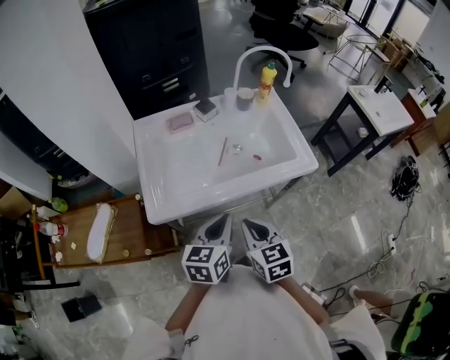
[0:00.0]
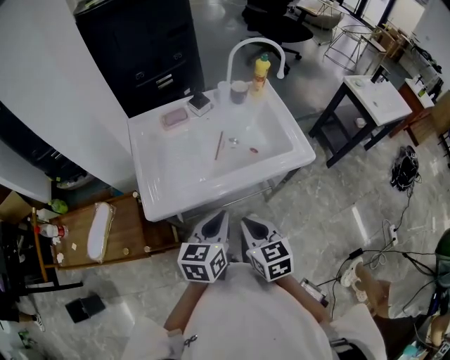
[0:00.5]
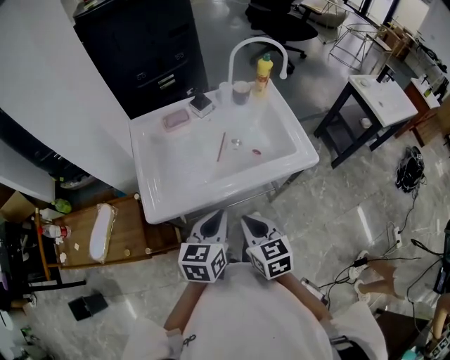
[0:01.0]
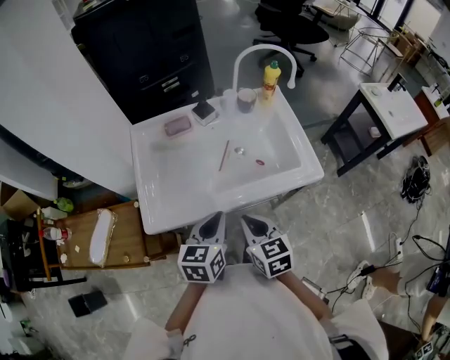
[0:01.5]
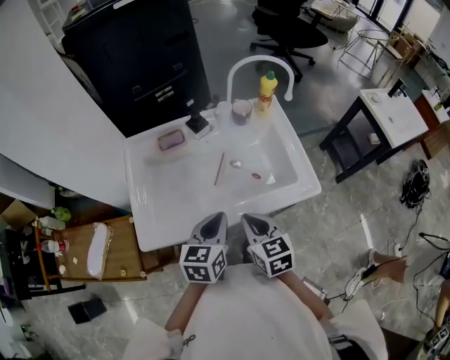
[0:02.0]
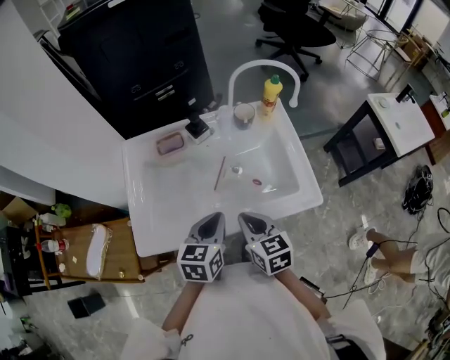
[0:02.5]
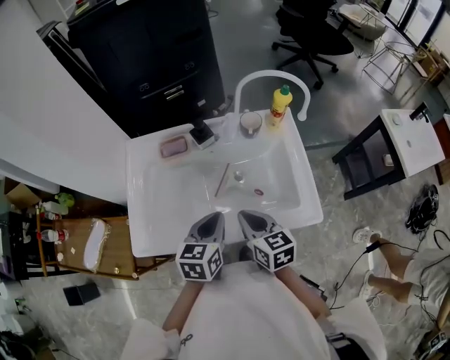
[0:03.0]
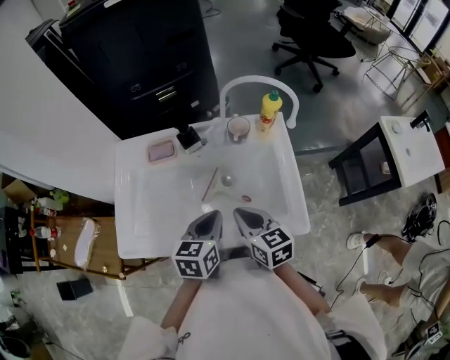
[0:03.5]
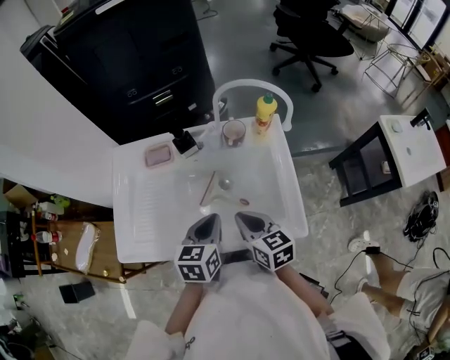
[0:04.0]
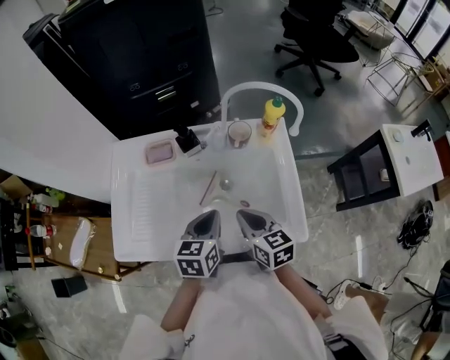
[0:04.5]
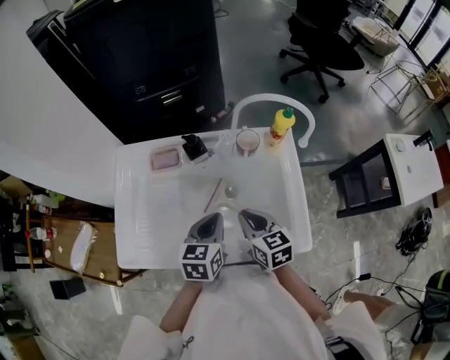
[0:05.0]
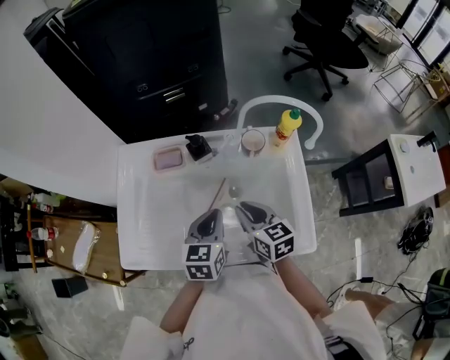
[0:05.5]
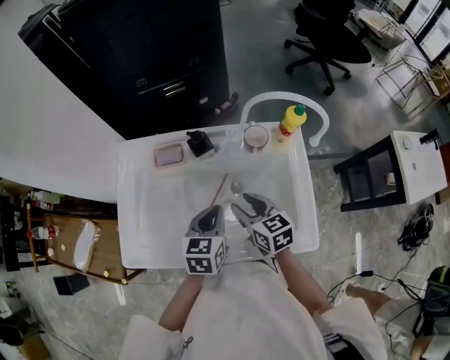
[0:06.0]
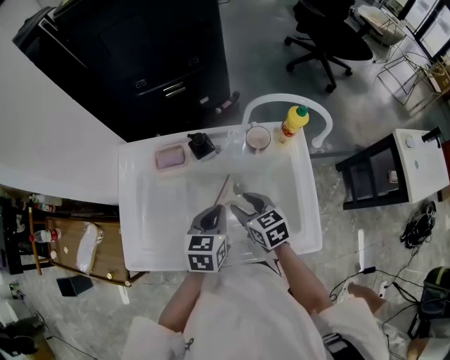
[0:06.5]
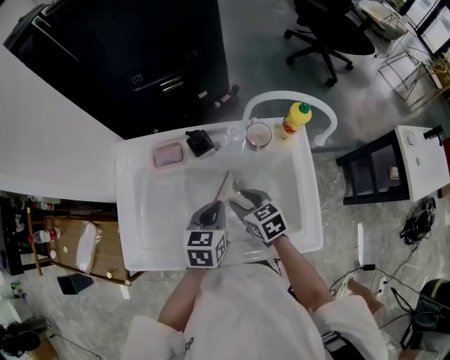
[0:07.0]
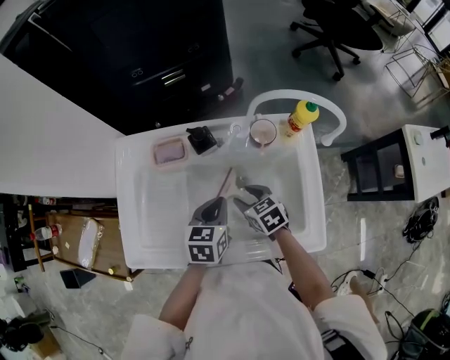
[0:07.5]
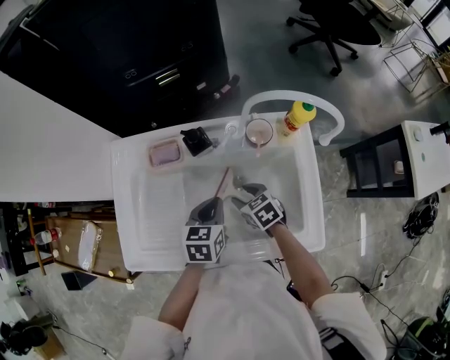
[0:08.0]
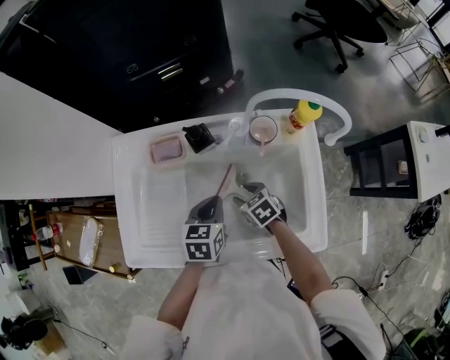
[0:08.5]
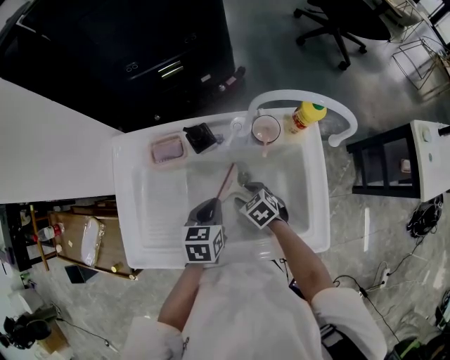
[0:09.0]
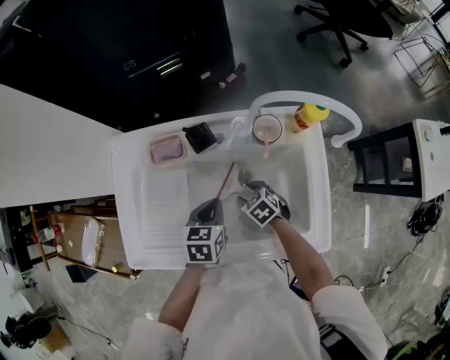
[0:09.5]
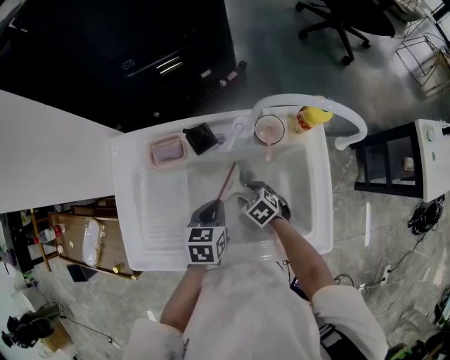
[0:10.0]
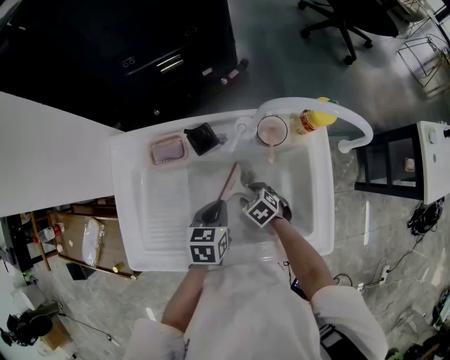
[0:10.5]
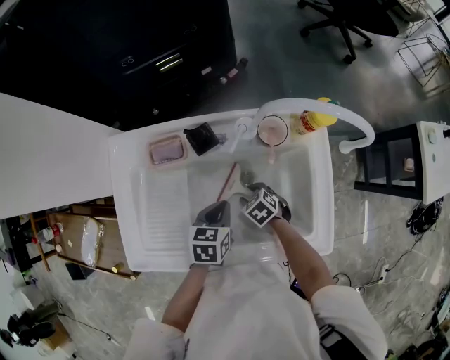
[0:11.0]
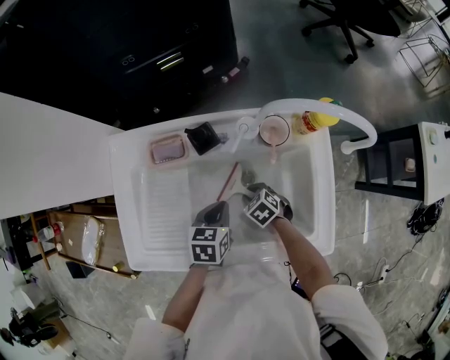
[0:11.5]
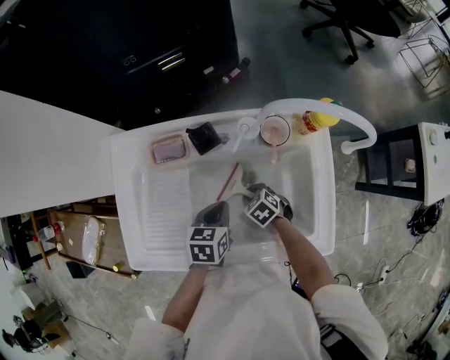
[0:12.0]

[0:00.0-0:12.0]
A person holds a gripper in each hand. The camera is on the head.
0:00.0 to 0:02.0: The two grippers go roughly 10 cm forward.
0:02.0 to 0:04.0: Both grippers move forward and to the right, some 15 cm.
0:04.0 to 0:06.0: The two grippers go roughly 10 cm forward. The right gripper opens.
0:06.0 to 0:08.0: The right gripper travels downward by about 10 cm, and changes its angle by roughly 30 degrees. Meanwhile the left gripper travels downward by approximately 5 cm.
0:08.0 to 0:10.0: The right gripper shifts about 5 cm downward.
0:10.0 to 0:12.0: The right gripper closes its fingers.

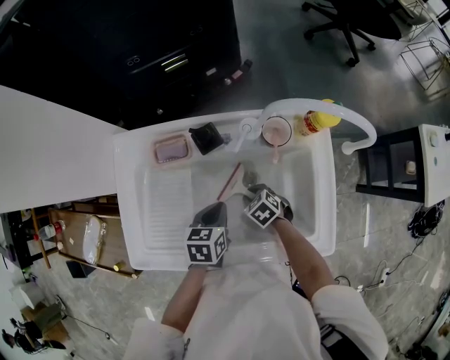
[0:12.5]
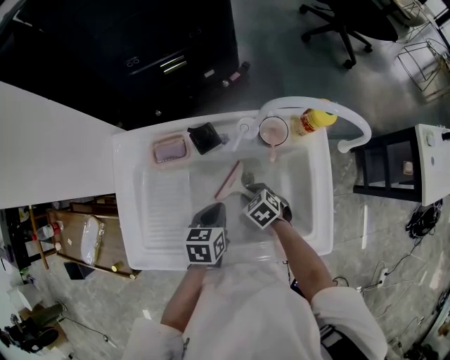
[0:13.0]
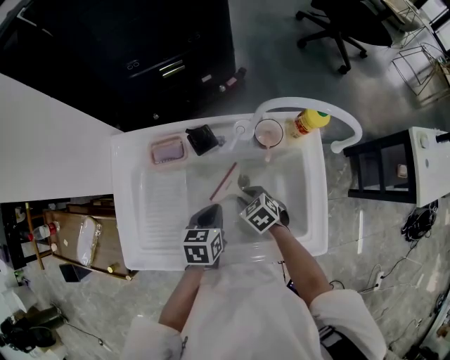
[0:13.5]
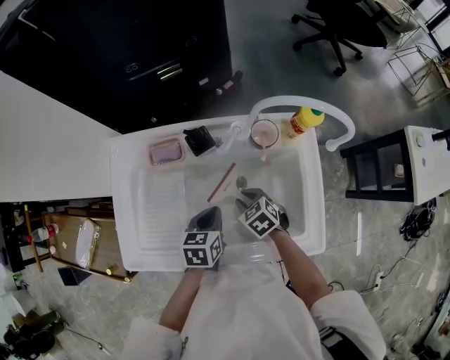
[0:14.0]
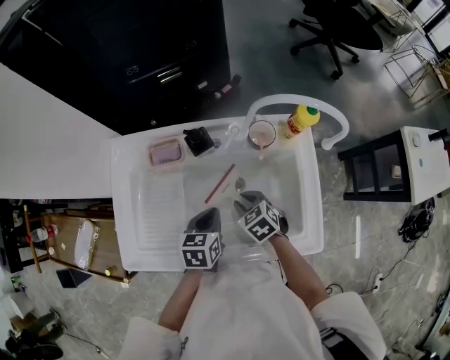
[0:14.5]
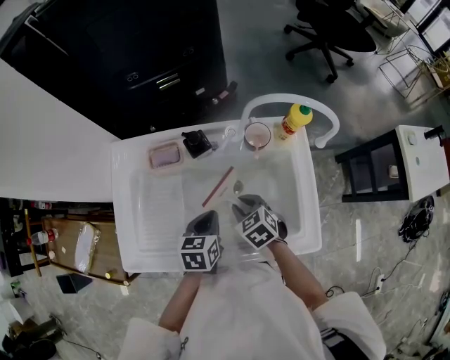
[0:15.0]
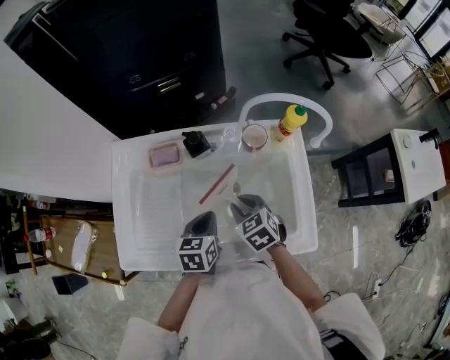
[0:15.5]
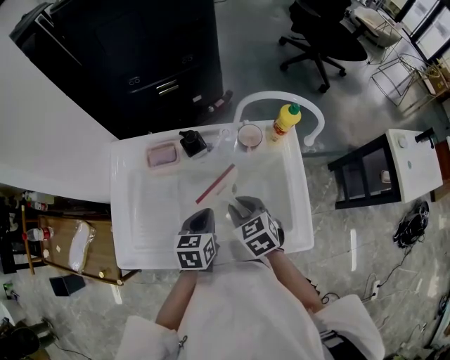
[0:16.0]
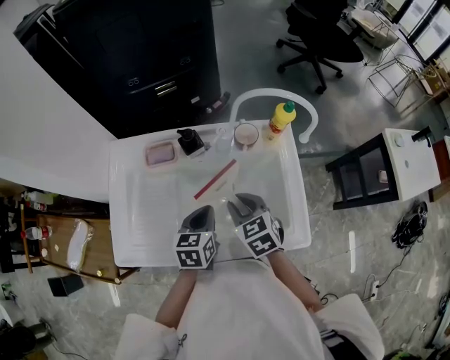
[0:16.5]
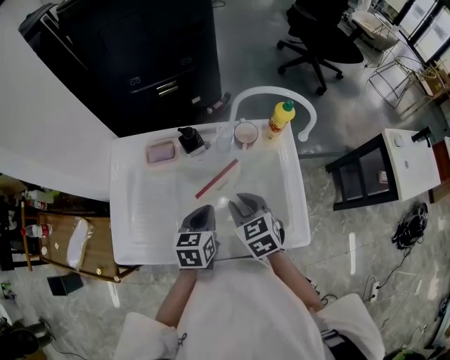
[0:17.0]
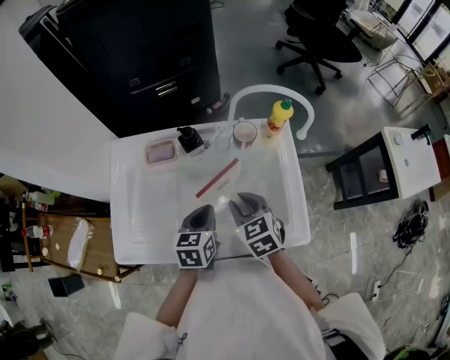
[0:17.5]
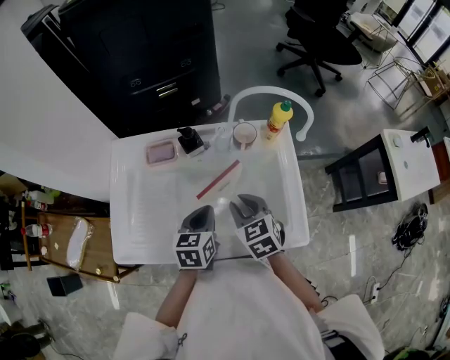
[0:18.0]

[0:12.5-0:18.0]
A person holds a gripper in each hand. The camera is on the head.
0:12.5 to 0:14.5: The right gripper is displaced upward by roughly 10 cm.
0:14.5 to 0:16.0: The right gripper travels upward by roughly 10 cm.
0:16.0 to 0:18.0: The grippers move only a little.

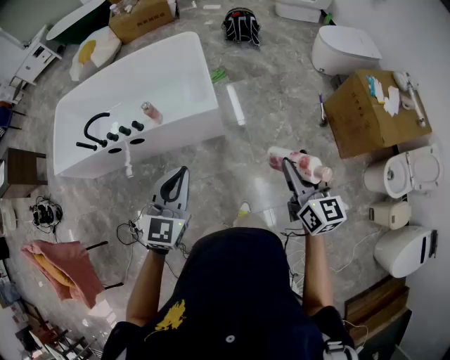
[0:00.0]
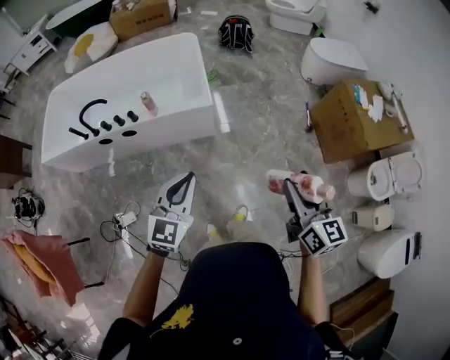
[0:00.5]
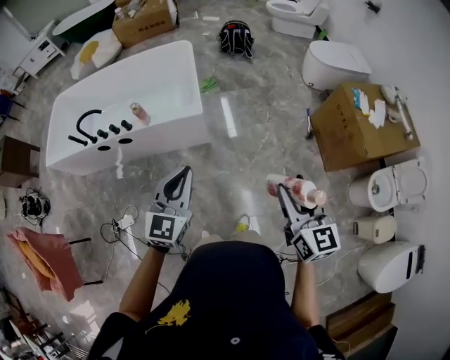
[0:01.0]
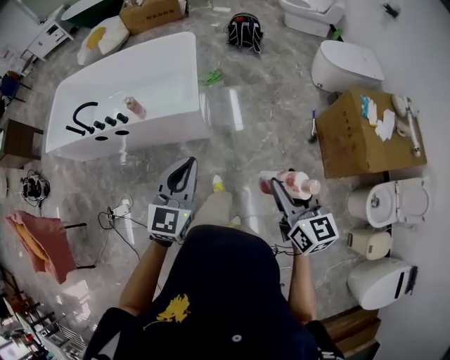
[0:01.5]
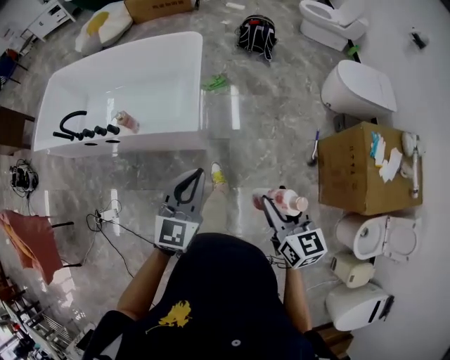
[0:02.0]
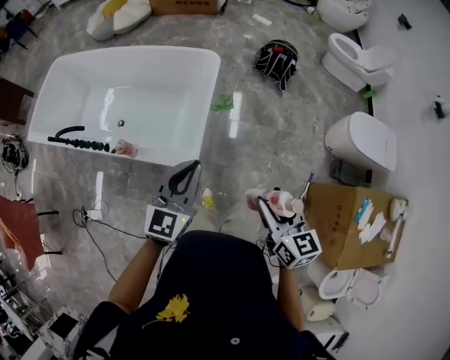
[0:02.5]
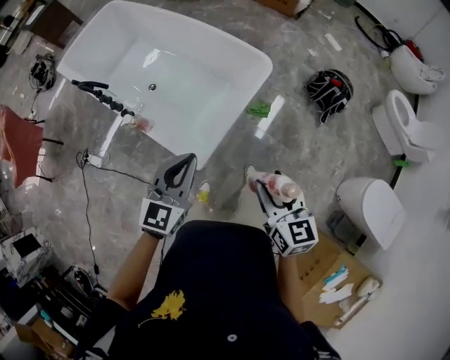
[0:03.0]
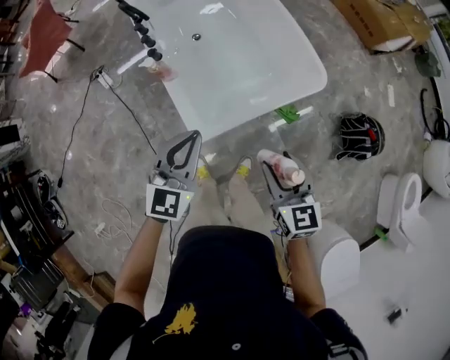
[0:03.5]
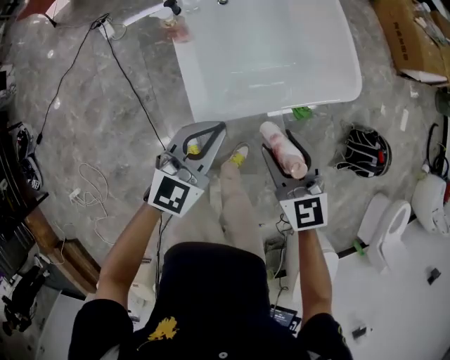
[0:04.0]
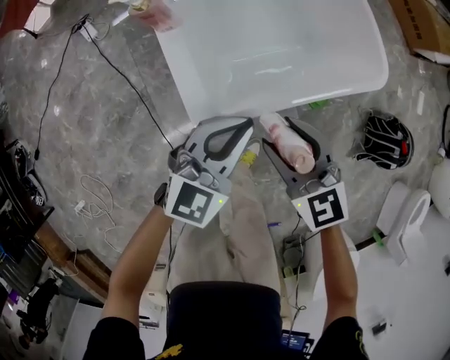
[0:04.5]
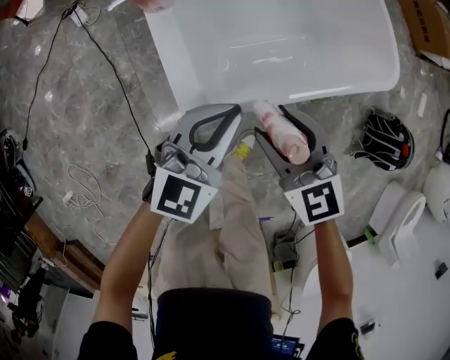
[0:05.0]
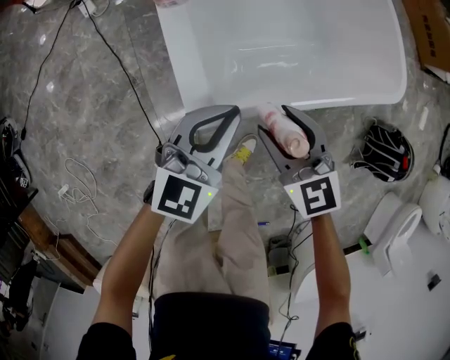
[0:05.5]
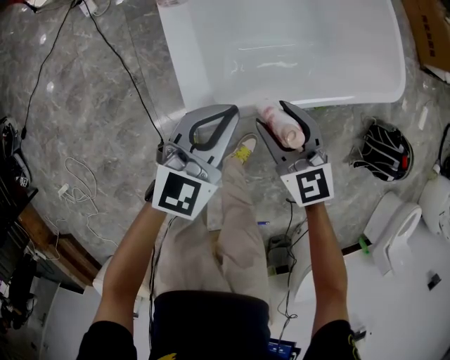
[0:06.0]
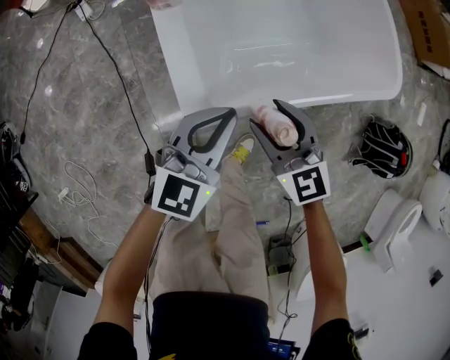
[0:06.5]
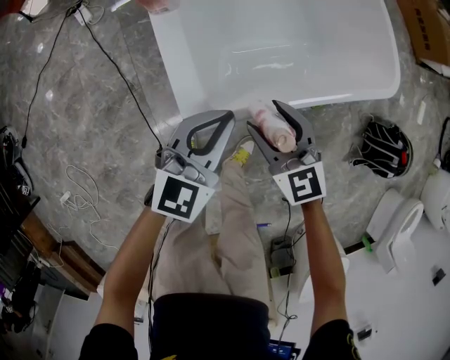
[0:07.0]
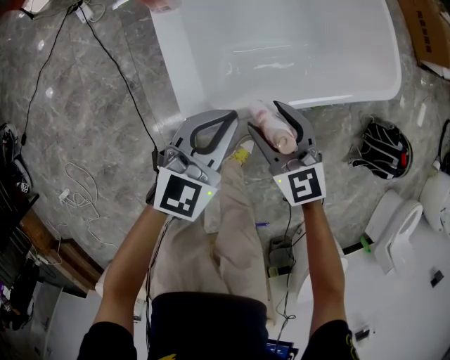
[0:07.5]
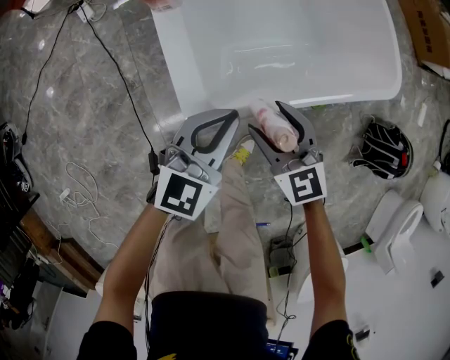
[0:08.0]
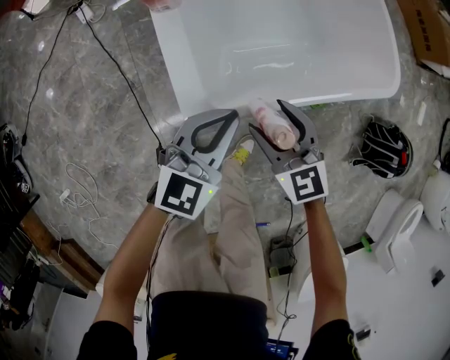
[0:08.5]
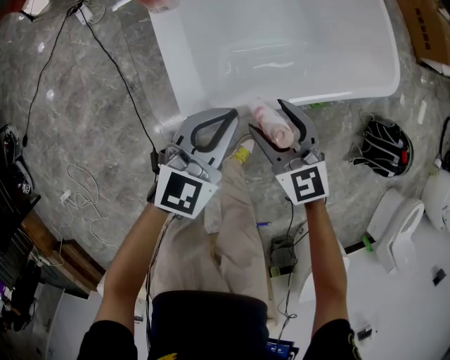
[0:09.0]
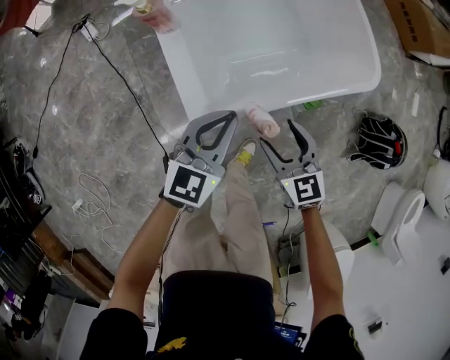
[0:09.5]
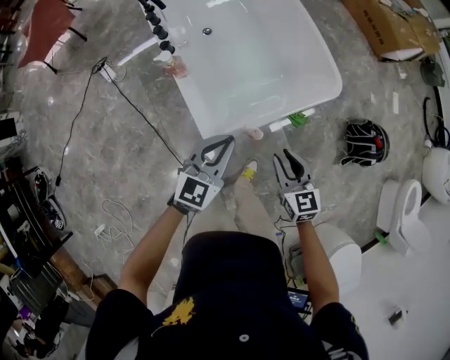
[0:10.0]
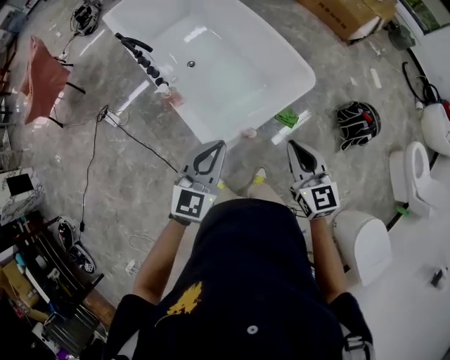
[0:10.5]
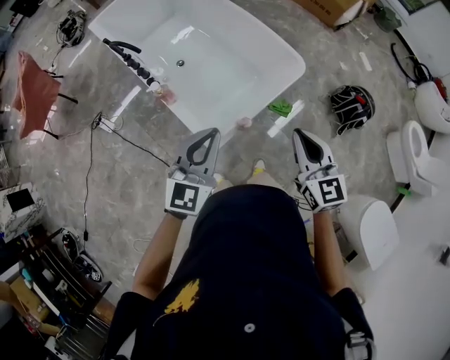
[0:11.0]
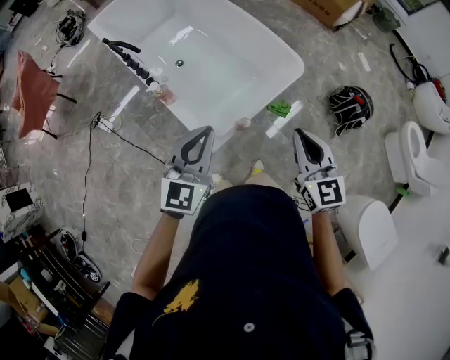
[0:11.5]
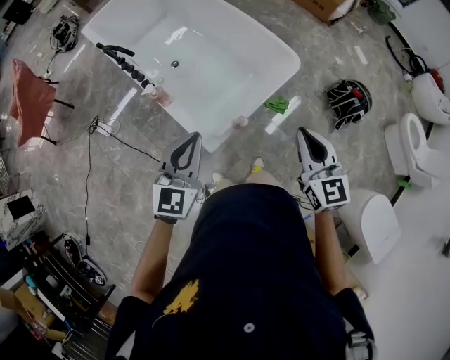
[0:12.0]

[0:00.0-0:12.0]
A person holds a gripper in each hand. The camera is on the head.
0:00.0 to 0:02.0: The right gripper goes about 20 cm forward, to the right and downward, and turns by roughly 20 degrees. Meanwhile the left gripper shifts roughly 25 cm forward and to the right.
0:02.0 to 0:04.0: The pair of grippers is taken about 50 cm. The left gripper turns by roughly 60 degrees. The right gripper swivels some 80 degrees.
0:04.0 to 0:06.0: The two grippers go roughly 20 cm downward.
0:06.0 to 0:08.0: The grippers stay close to where they were, moving slightly.
0:08.0 to 0:10.0: The left gripper goes about 25 cm upward, while the right gripper moves upward and to the right, approximately 25 cm, rotates approximately 40 degrees, and closes.
0:10.0 to 0:12.0: Both grippers move upward, some 20 cm. The right gripper swivels some 30 degrees, and closes its fingers.
